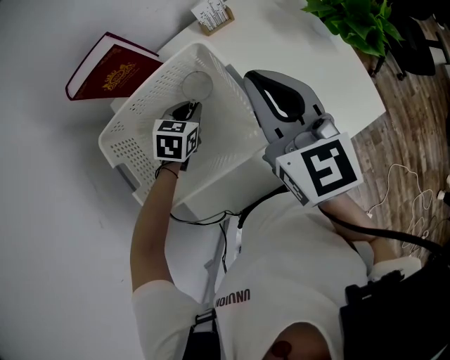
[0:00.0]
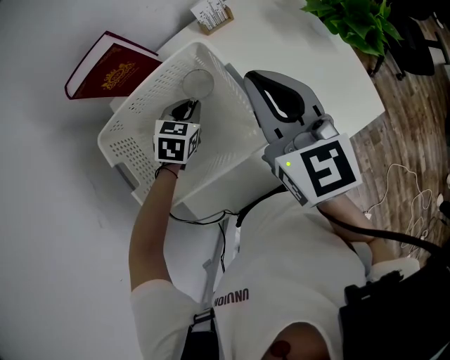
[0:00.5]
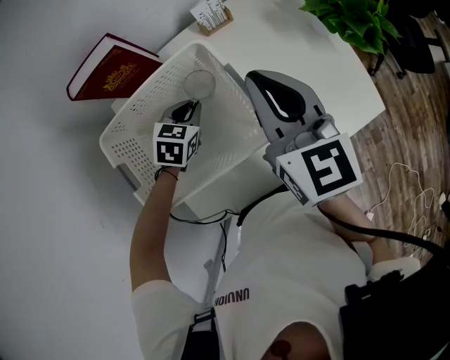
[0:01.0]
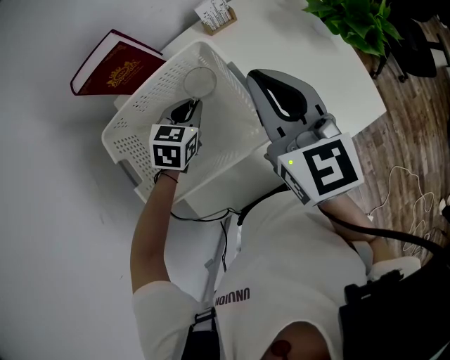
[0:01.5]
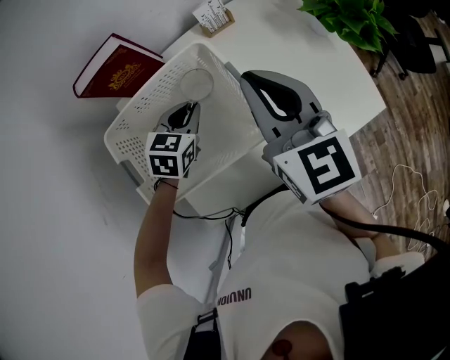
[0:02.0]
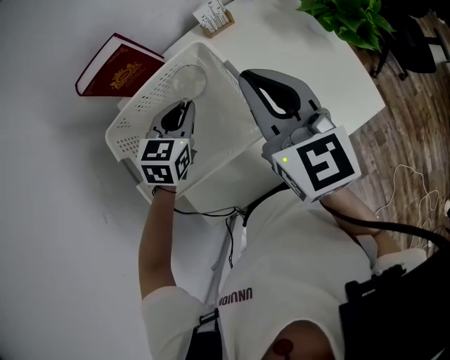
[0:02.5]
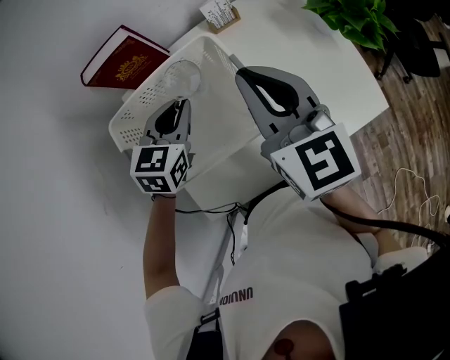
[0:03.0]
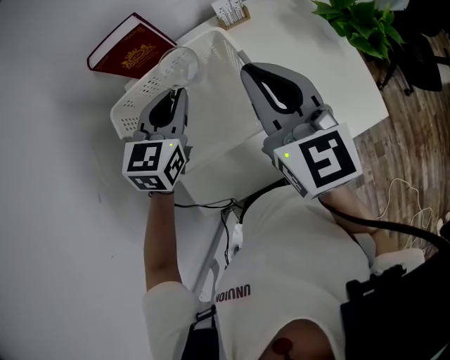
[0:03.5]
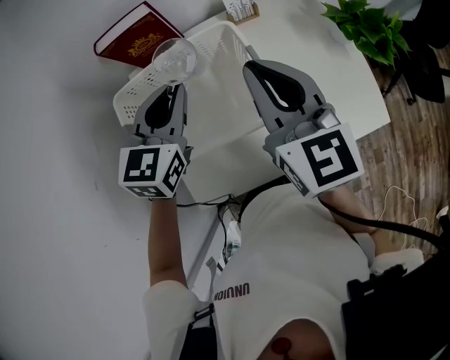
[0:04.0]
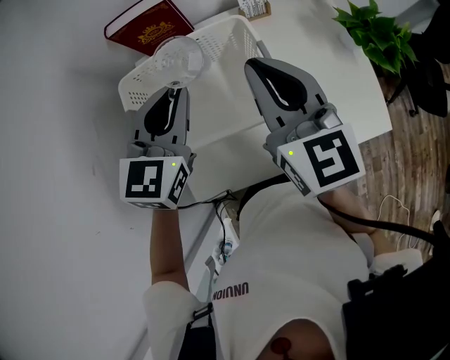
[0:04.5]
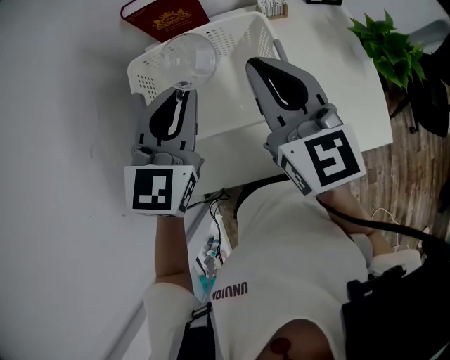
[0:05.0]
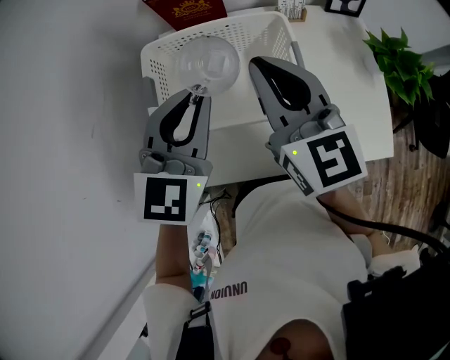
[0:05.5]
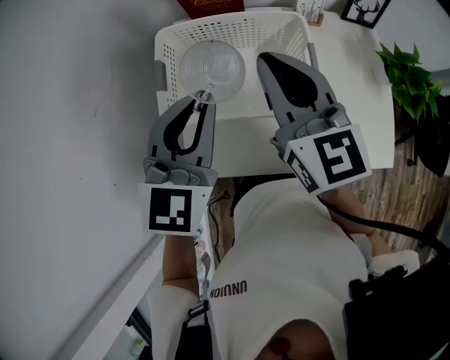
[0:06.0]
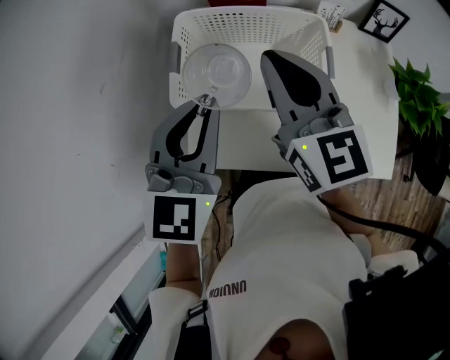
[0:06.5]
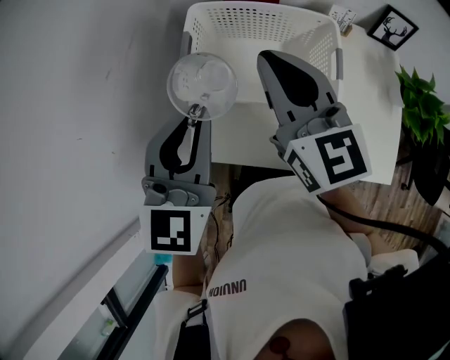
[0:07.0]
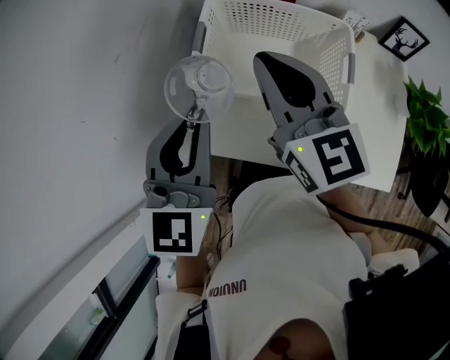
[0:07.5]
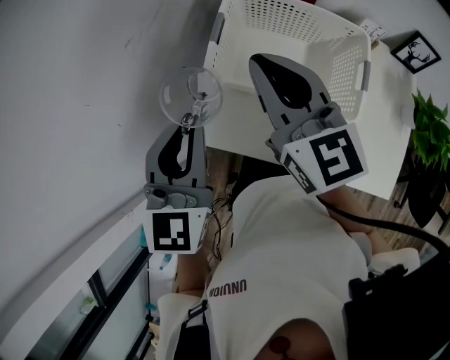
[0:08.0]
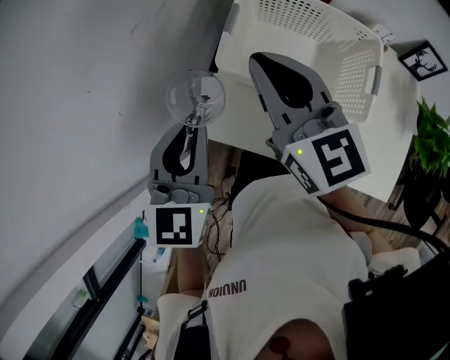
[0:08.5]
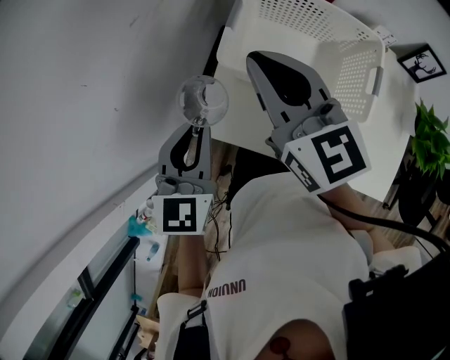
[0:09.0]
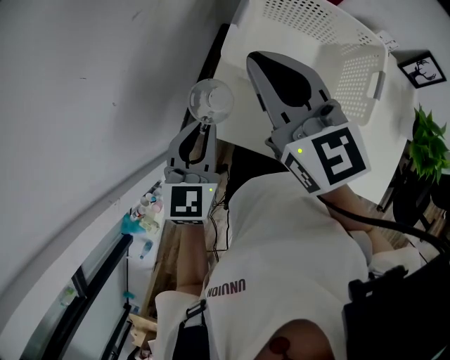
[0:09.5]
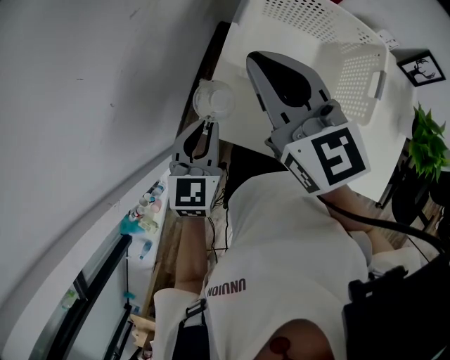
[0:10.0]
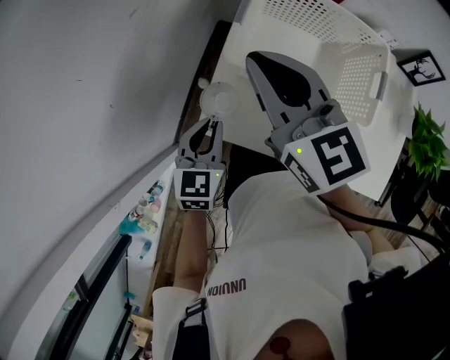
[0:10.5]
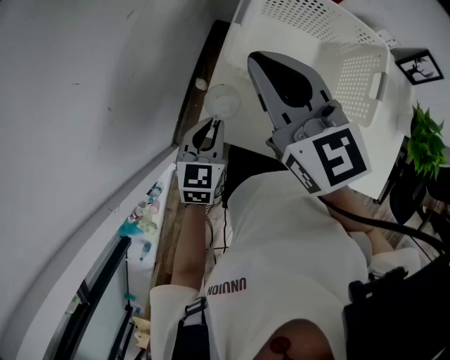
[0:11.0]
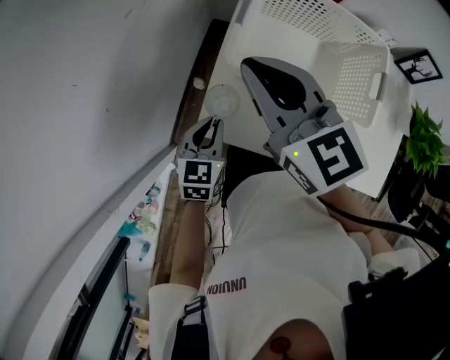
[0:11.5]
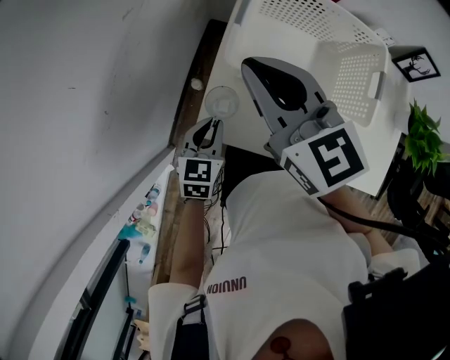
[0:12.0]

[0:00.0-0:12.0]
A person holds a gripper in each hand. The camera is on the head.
0:00.0 to 0:02.0: The left gripper shifts approximately 5 cm upward.
0:02.0 to 0:04.0: The left gripper shifts approximately 15 cm upward, and swivels roughly 30 degrees.
0:04.0 to 0:06.0: The left gripper heads backward and upward, covering approximately 15 cm, while the right gripper goes roughly 10 cm to the left.
0:06.0 to 0:08.0: The right gripper moves to the left, some 15 cm, and turns by approximately 20 degrees; the left gripper is displaced to the left and backward by roughly 15 cm, and rotates roughly 30 degrees.
0:08.0 to 0:10.0: The left gripper is displaced downward by some 15 cm. The right gripper goes some 5 cm to the left.
0:10.0 to 0:12.0: The left gripper shifts roughly 10 cm downward.

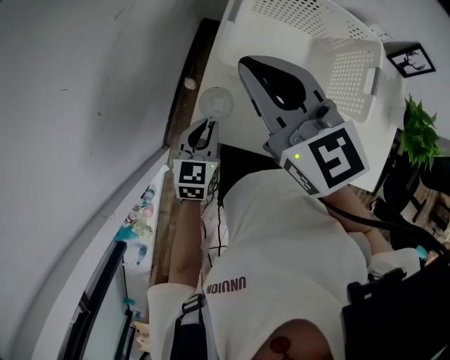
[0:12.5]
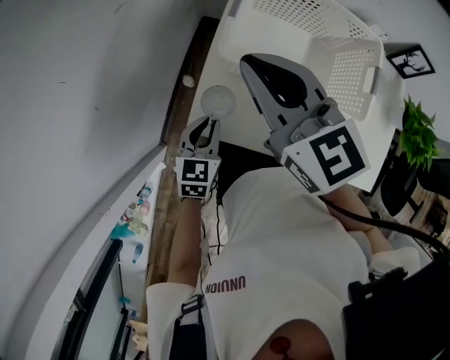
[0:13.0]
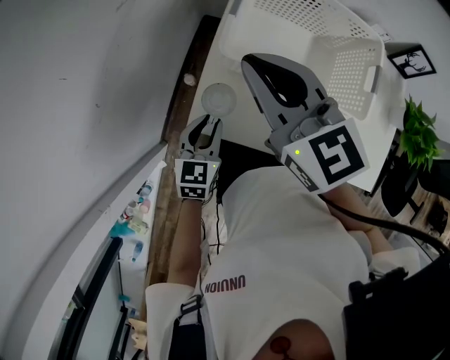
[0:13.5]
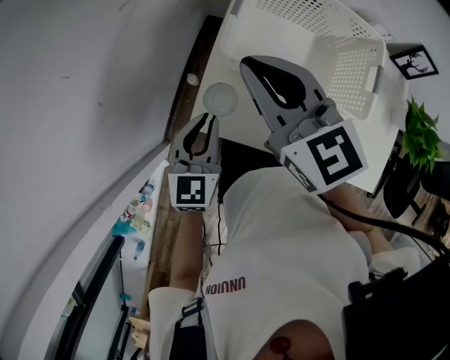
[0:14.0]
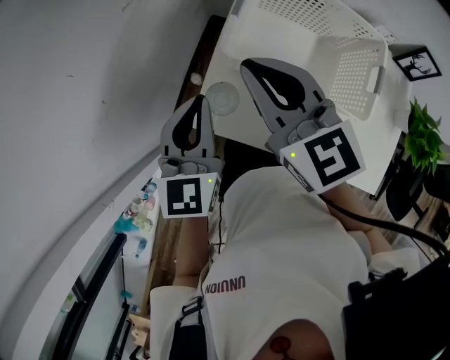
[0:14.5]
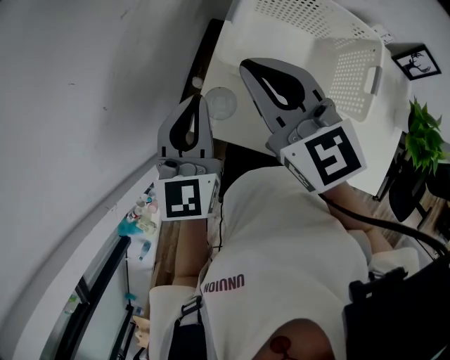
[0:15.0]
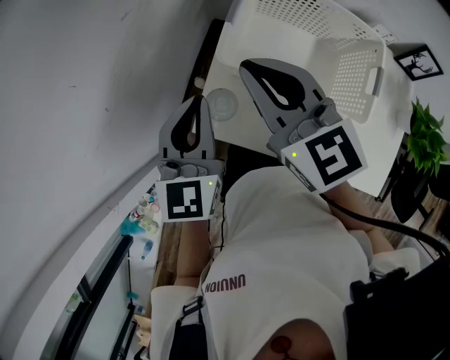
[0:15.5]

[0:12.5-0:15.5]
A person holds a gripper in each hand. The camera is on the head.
0:12.5 to 0:14.0: The left gripper travels upward by roughly 10 cm.
0:14.0 to 0:15.5: The left gripper heads upward, covering about 10 cm.

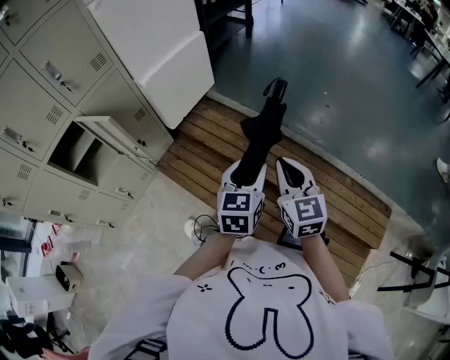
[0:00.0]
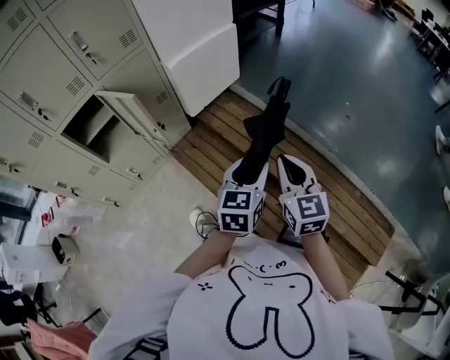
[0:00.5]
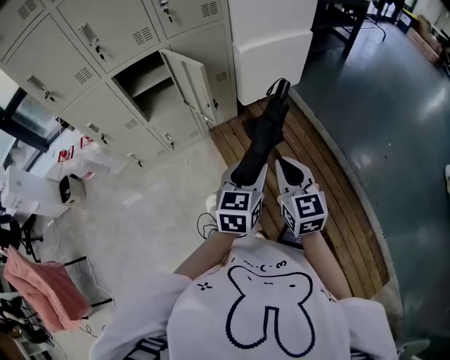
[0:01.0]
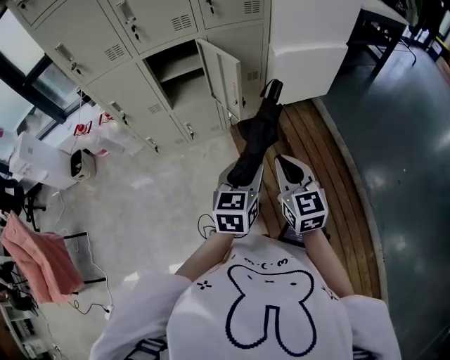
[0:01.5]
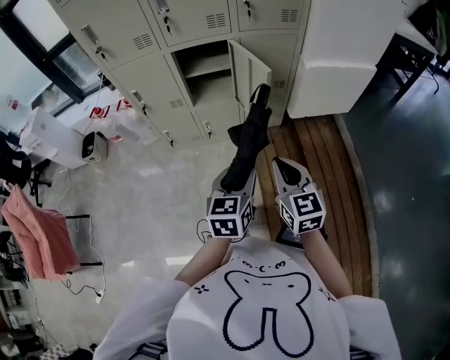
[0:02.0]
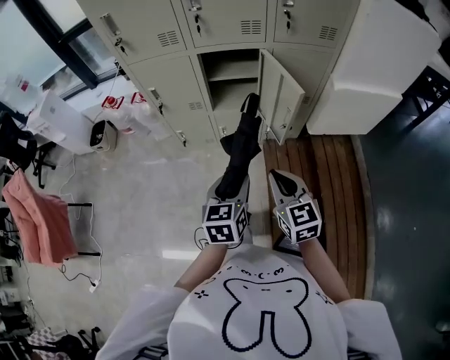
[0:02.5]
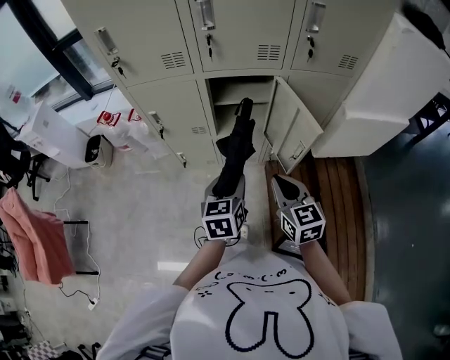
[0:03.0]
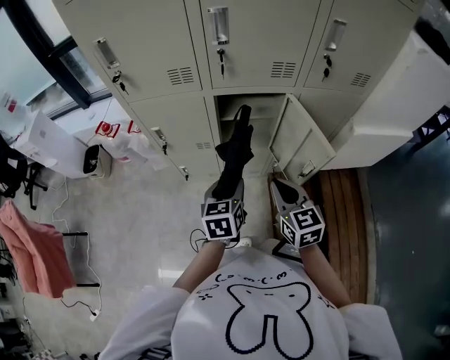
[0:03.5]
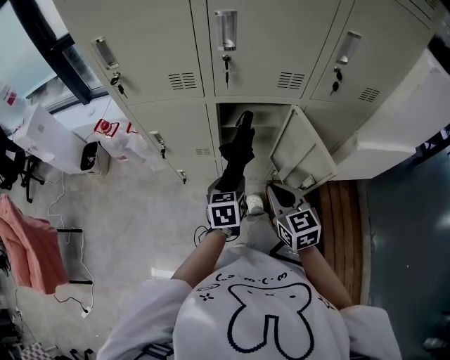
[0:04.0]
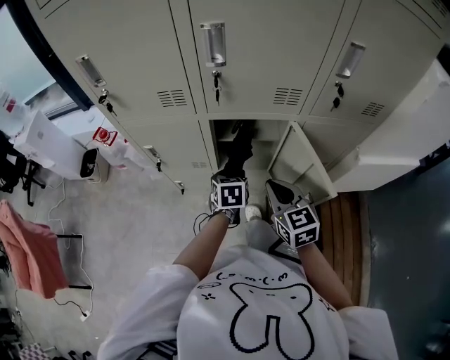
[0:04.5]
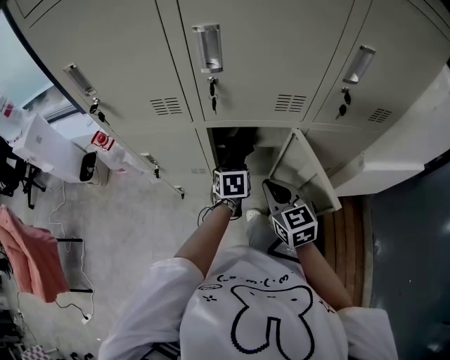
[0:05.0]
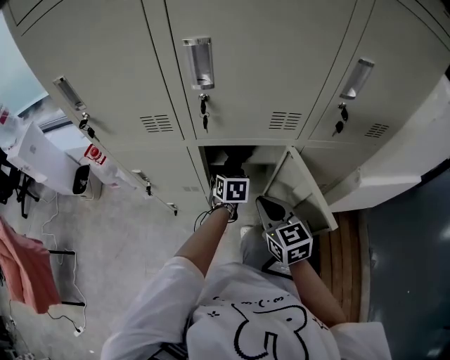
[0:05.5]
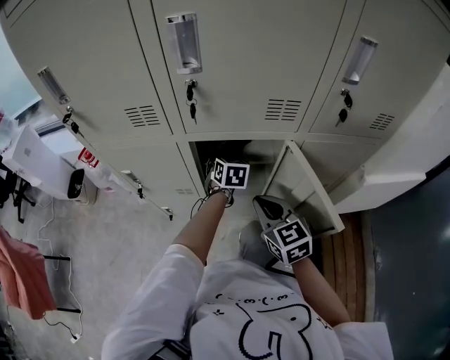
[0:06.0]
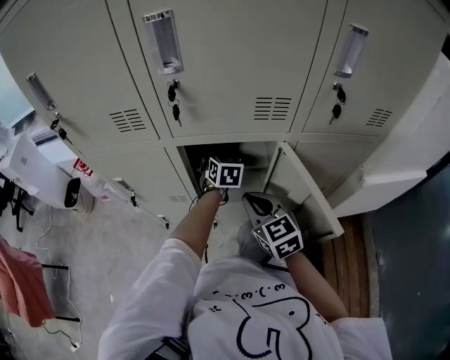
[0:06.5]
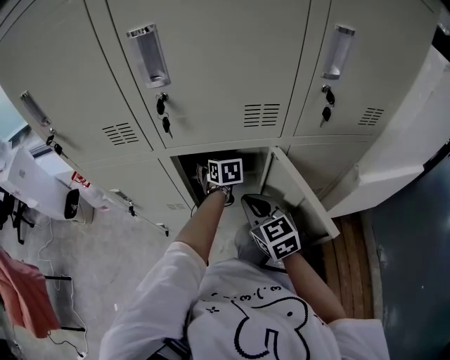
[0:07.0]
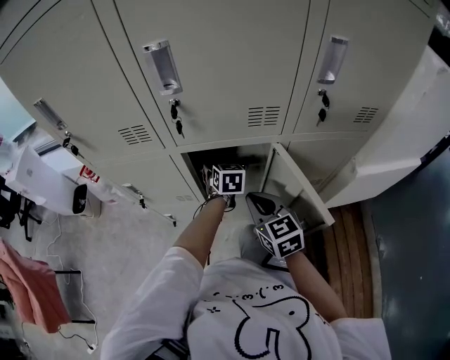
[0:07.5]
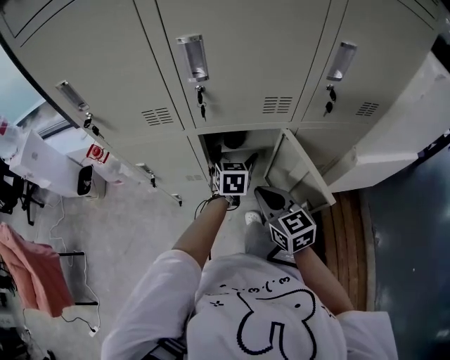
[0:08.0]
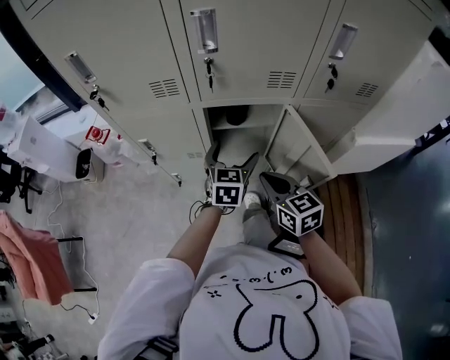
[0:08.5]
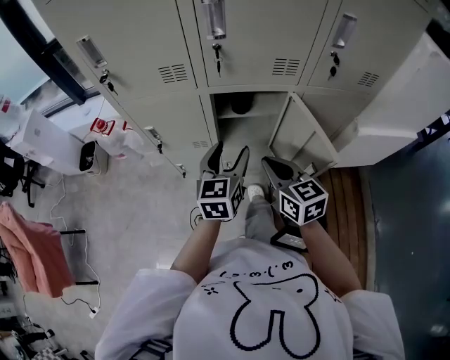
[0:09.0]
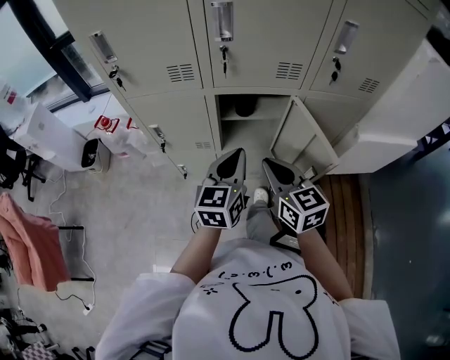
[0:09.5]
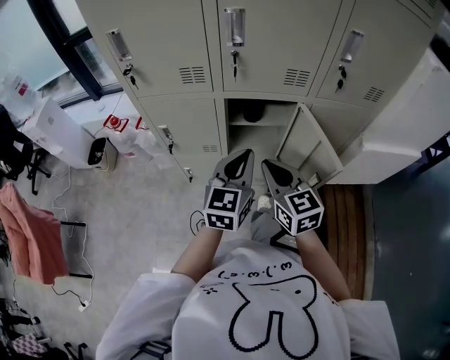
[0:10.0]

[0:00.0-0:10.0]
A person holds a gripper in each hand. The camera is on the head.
0:00.0 to 0:02.0: The right gripper shifts by roughly 35 cm, and changes its angle by some 50 degrees; the left gripper shifts by some 35 cm, and turns by some 50 degrees.
0:02.0 to 0:04.0: The left gripper travels forward by some 35 cm. The right gripper travels forward and to the left by some 30 cm.
0:04.0 to 0:06.0: The left gripper shifts about 25 cm forward, and rotates roughly 20 degrees. Meanwhile the right gripper goes roughly 15 cm forward and downward.
0:06.0 to 0:08.0: The right gripper is displaced upward by roughly 5 cm; the left gripper heads backward and upward, covering roughly 10 cm, and opens up.
0:08.0 to 0:10.0: The left gripper travels backward and upward by about 25 cm, swivels some 20 degrees, and closes its fingers. Meanwhile the right gripper shifts some 10 cm backward and upward.

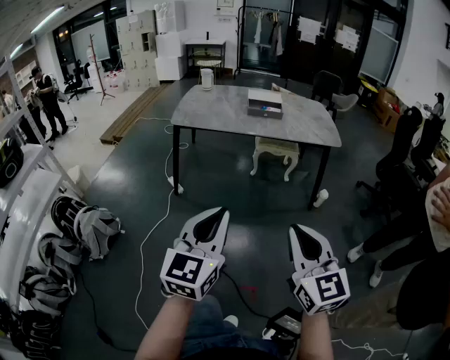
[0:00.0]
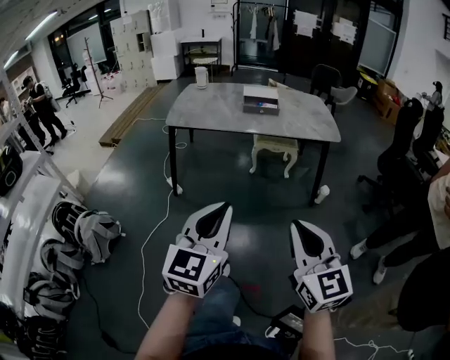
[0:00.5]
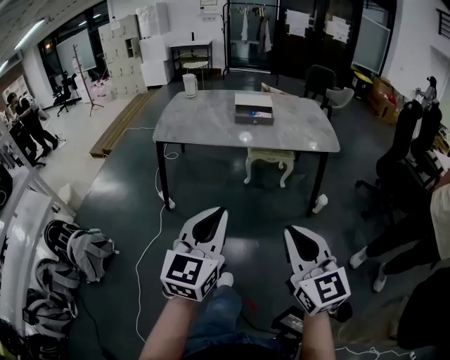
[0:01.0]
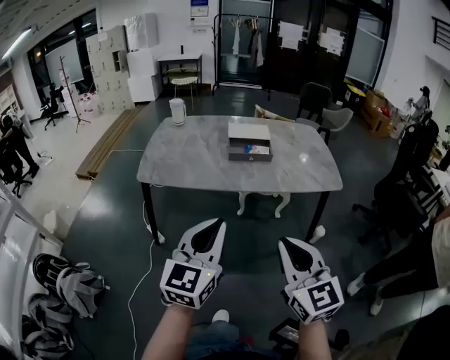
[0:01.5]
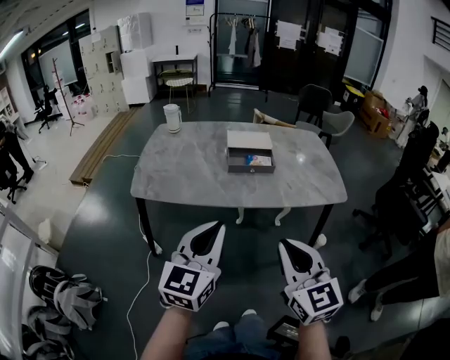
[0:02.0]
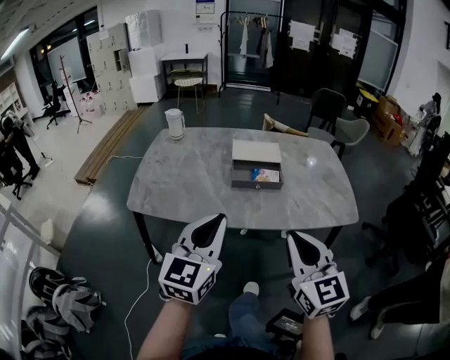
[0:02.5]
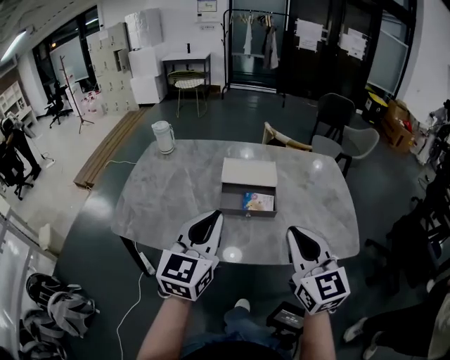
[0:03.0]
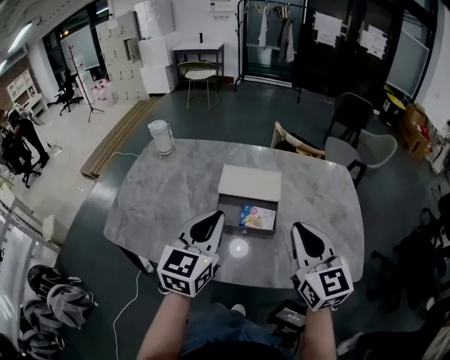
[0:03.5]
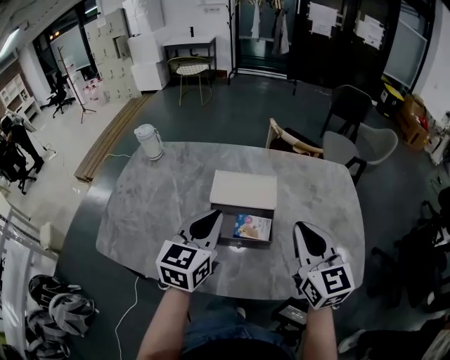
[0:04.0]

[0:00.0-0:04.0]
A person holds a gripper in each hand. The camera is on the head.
0:00.0 to 0:02.0: The two grippers go roughly 40 cm forward.
0:02.0 to 0:04.0: The pair of grippers is taken forward, about 40 cm.
